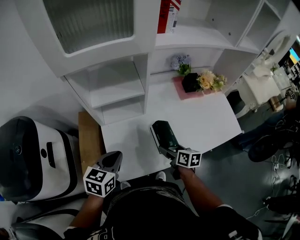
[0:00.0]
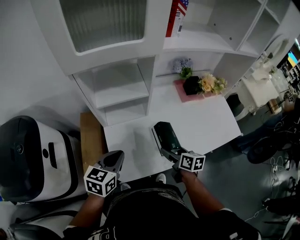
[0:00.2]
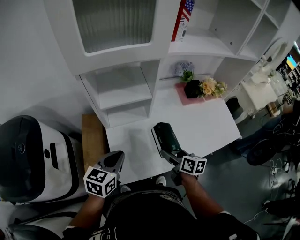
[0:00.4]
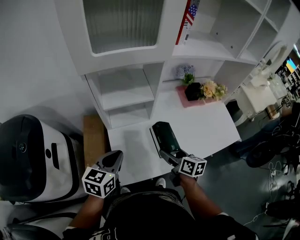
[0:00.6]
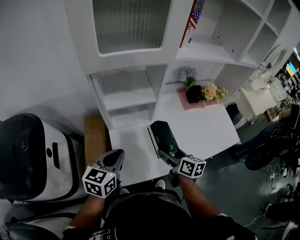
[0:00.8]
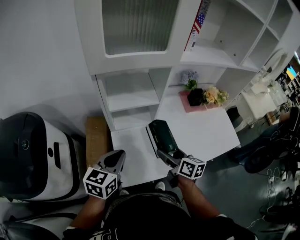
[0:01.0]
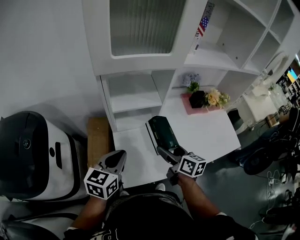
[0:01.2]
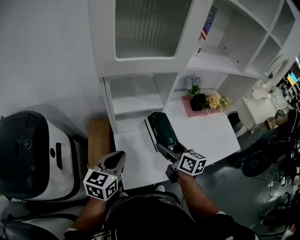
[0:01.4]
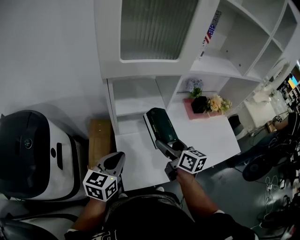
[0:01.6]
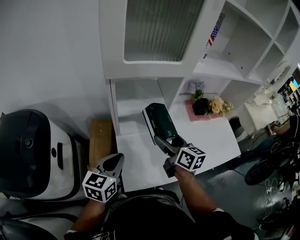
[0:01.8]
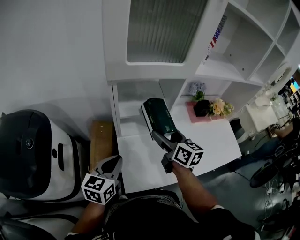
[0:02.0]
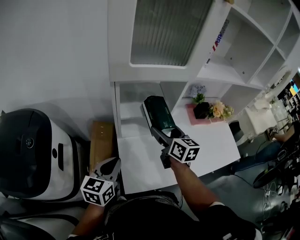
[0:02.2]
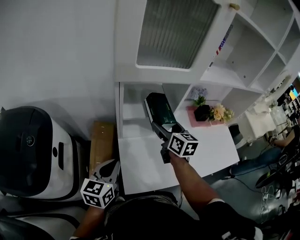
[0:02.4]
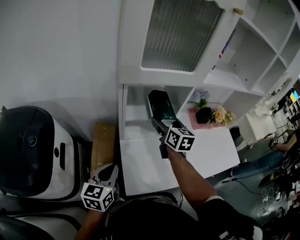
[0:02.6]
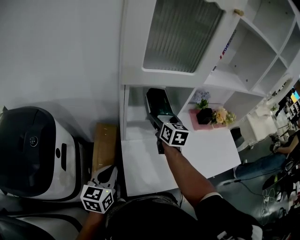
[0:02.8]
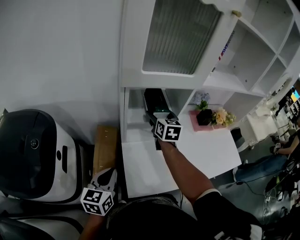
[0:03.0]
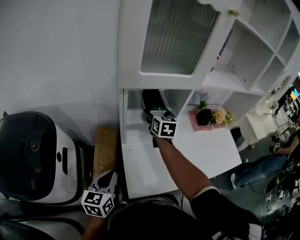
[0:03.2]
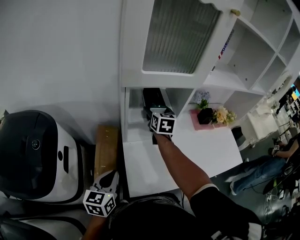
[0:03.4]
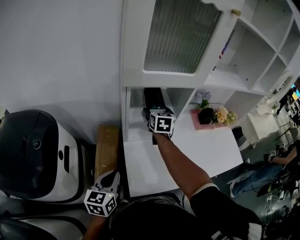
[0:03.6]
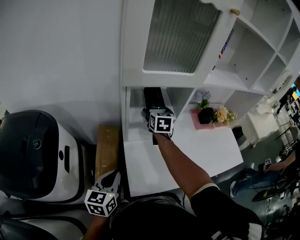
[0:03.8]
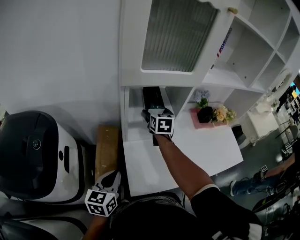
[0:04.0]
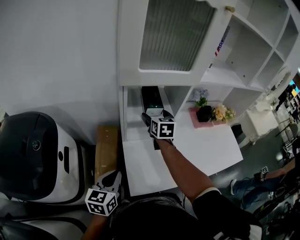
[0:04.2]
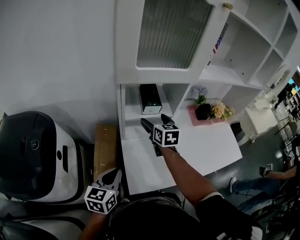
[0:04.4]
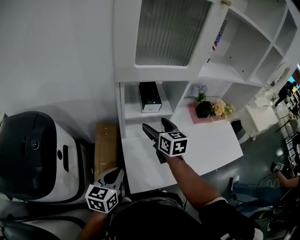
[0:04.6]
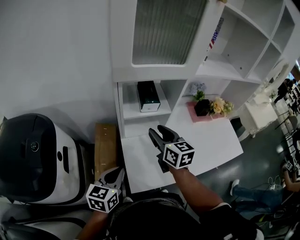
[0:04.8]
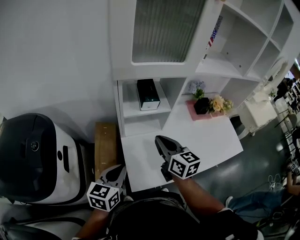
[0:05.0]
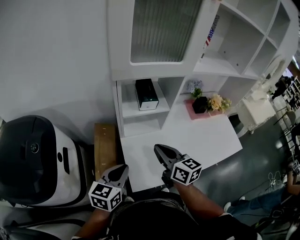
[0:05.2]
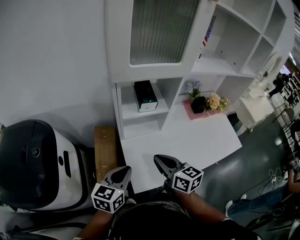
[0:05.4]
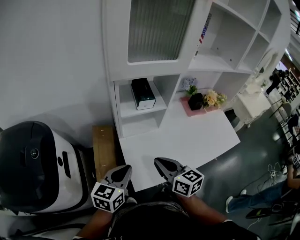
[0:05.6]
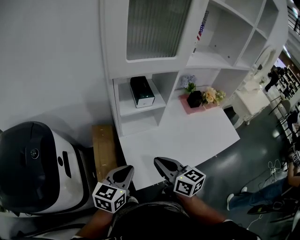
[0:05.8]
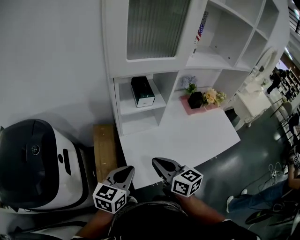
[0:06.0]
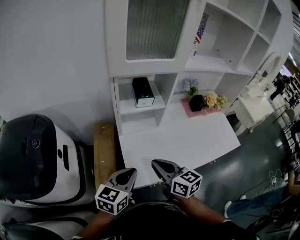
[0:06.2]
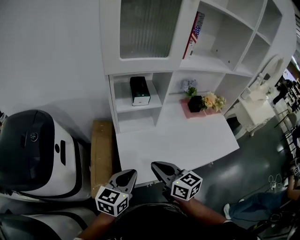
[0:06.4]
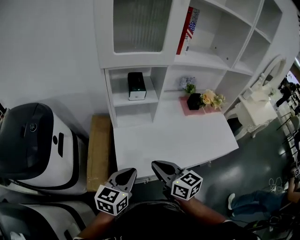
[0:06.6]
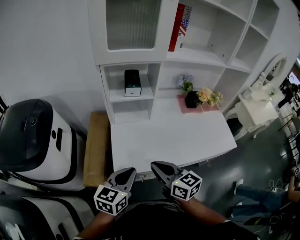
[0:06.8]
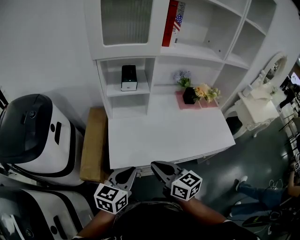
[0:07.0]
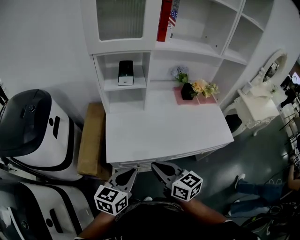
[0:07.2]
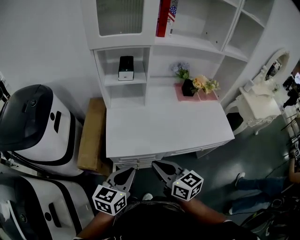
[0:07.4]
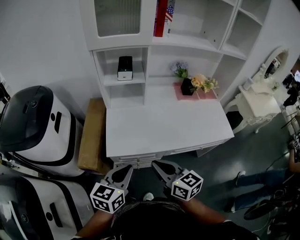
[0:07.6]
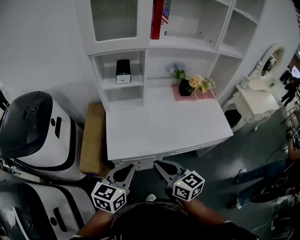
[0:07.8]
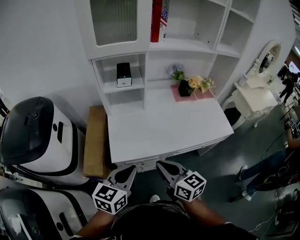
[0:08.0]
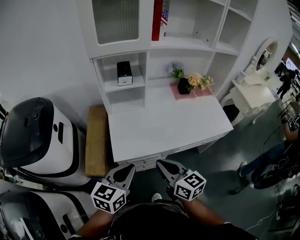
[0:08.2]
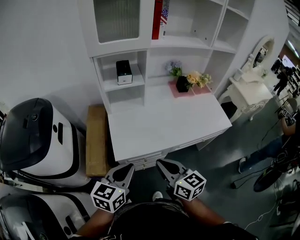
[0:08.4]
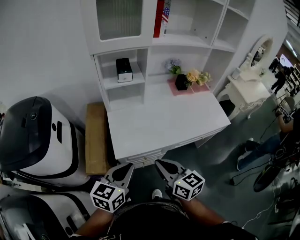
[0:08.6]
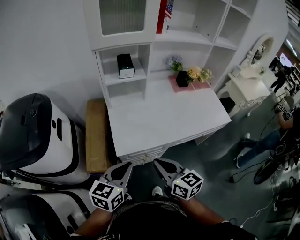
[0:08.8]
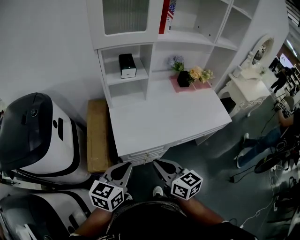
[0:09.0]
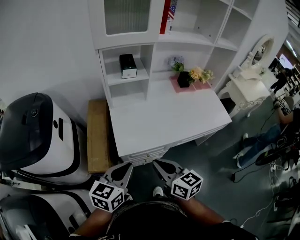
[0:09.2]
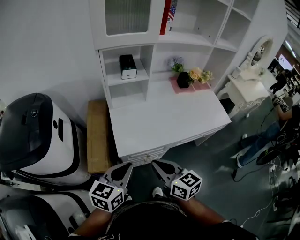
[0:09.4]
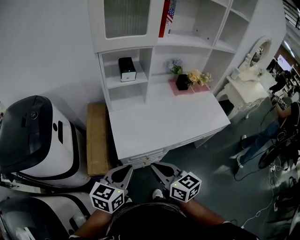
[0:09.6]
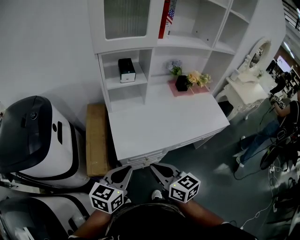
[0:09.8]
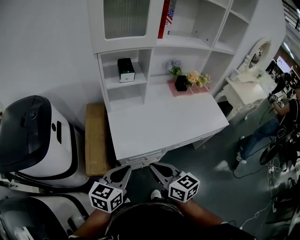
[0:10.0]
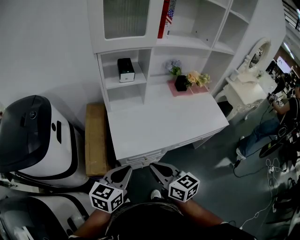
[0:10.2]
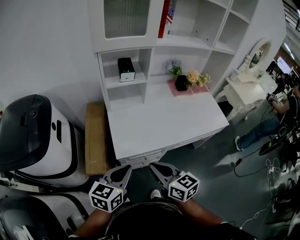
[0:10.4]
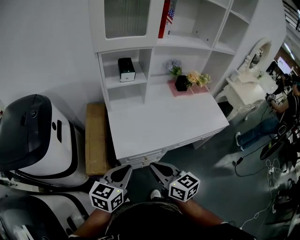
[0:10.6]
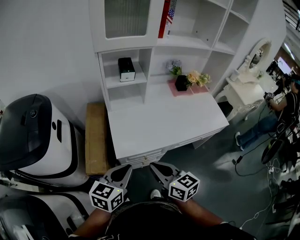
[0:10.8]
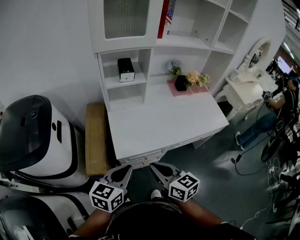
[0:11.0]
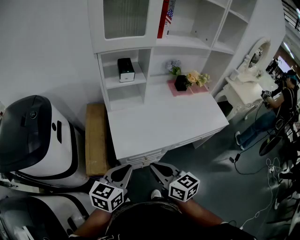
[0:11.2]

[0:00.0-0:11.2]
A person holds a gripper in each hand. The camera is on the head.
0:00.0 to 0:01.6: The left gripper moves to the left and upward, roughly 10 cm; the right gripper is displaced upward and to the left by approximately 25 cm, and swivels approximately 20 degrees.
0:01.6 to 0:03.2: The right gripper moves forward and to the left, roughly 20 cm, and turns by approximately 30 degrees. Meanwhile the left gripper heads to the left, covering about 10 cm.
0:03.2 to 0:04.8: The right gripper goes about 15 cm backward, and closes up.
0:04.8 to 0:06.4: The left gripper heads to the right and backward, covering approximately 10 cm. Meanwhile the right gripper heads backward, covering about 20 cm, and closes up.
0:06.4 to 0:08.0: The grippers both shift backward and to the right by some 20 cm.
0:08.0 to 0:09.6: Both grippers move to the left, roughly 10 cm.
0:09.6 to 0:11.2: Both grippers stay about where they are.

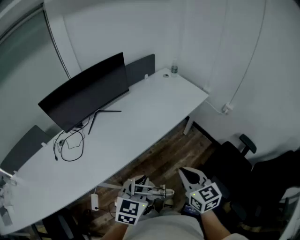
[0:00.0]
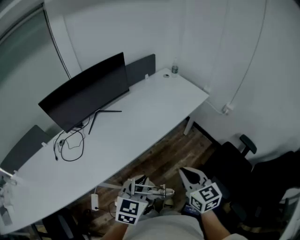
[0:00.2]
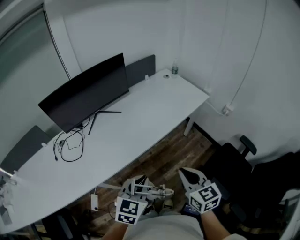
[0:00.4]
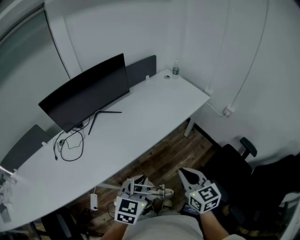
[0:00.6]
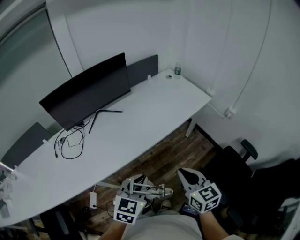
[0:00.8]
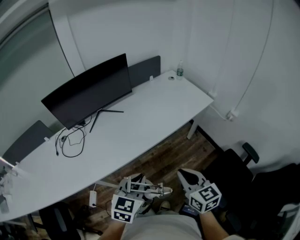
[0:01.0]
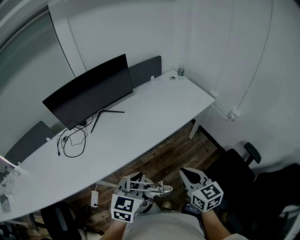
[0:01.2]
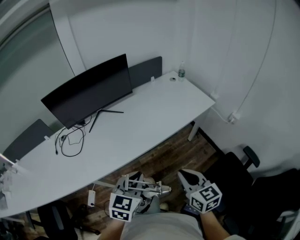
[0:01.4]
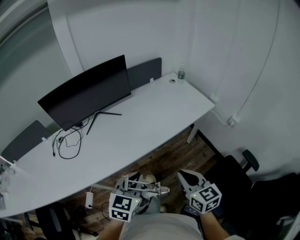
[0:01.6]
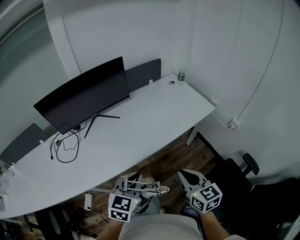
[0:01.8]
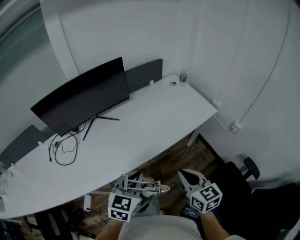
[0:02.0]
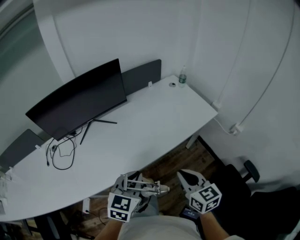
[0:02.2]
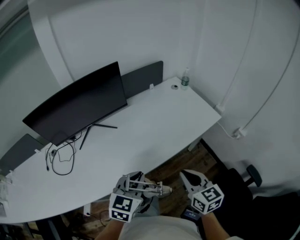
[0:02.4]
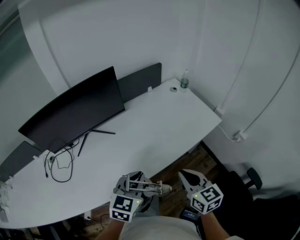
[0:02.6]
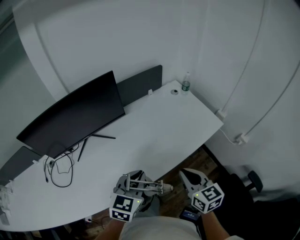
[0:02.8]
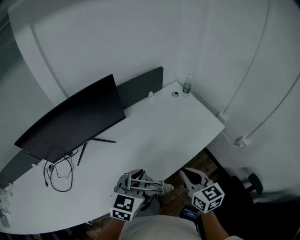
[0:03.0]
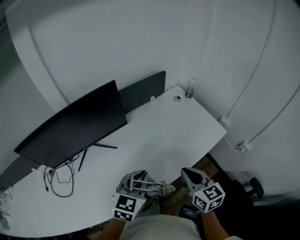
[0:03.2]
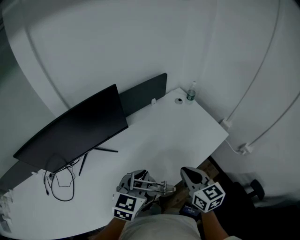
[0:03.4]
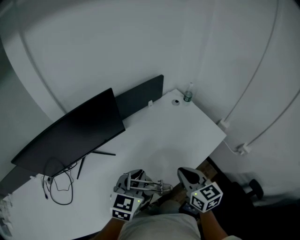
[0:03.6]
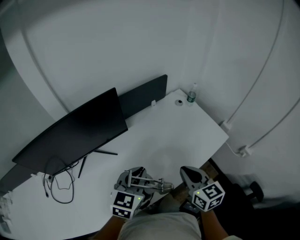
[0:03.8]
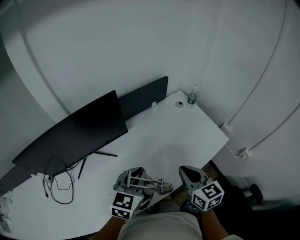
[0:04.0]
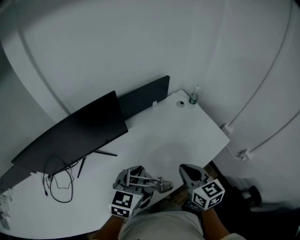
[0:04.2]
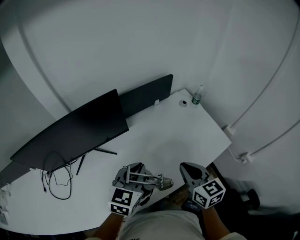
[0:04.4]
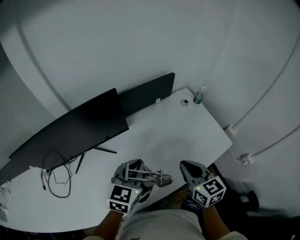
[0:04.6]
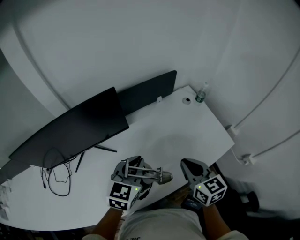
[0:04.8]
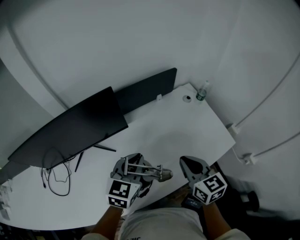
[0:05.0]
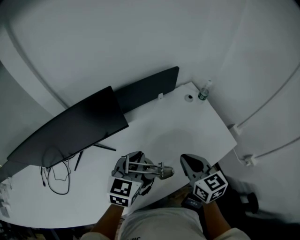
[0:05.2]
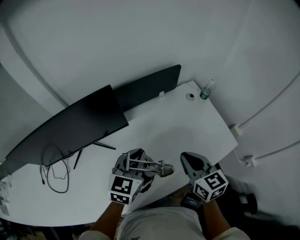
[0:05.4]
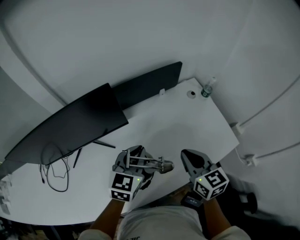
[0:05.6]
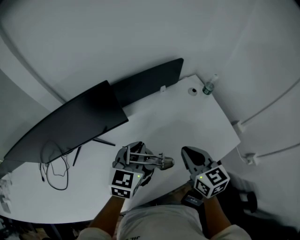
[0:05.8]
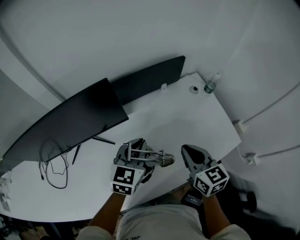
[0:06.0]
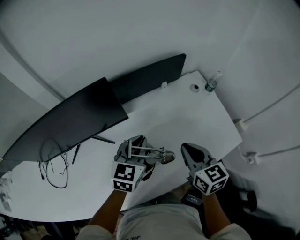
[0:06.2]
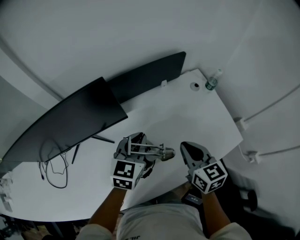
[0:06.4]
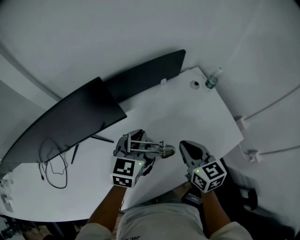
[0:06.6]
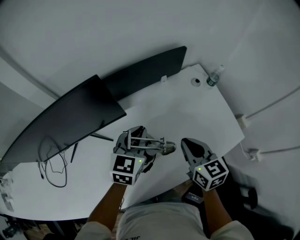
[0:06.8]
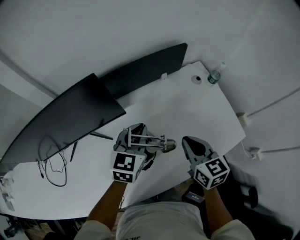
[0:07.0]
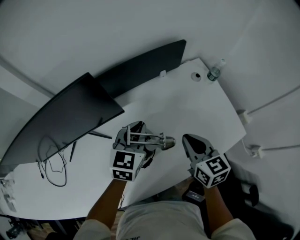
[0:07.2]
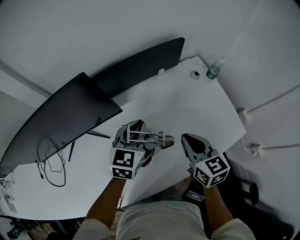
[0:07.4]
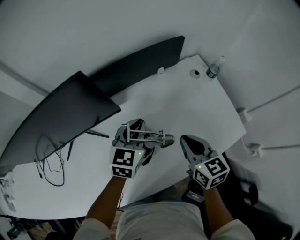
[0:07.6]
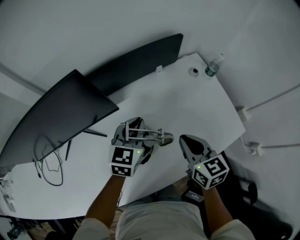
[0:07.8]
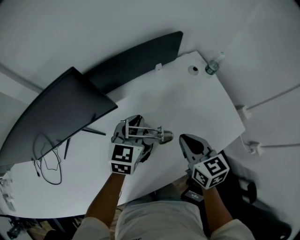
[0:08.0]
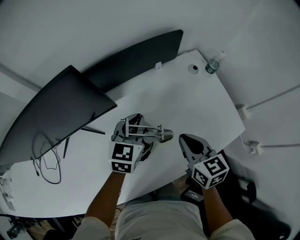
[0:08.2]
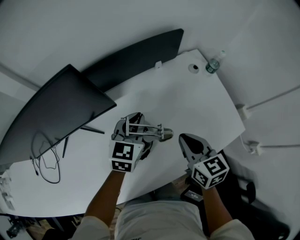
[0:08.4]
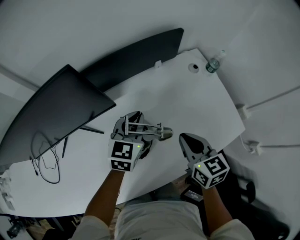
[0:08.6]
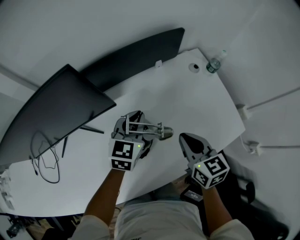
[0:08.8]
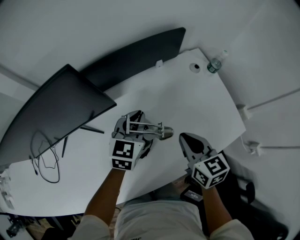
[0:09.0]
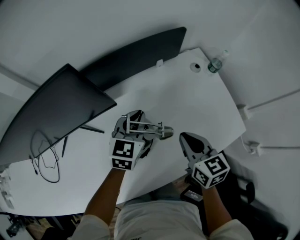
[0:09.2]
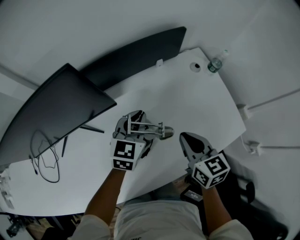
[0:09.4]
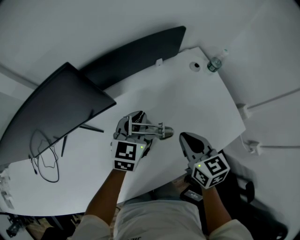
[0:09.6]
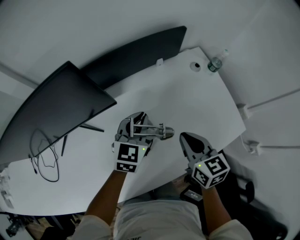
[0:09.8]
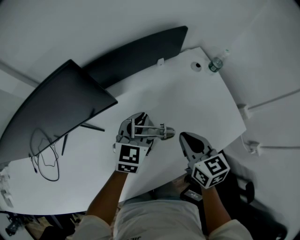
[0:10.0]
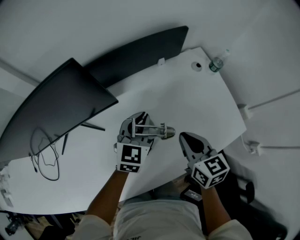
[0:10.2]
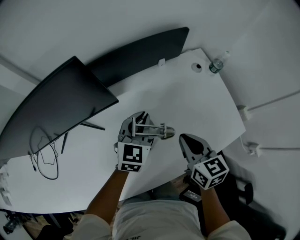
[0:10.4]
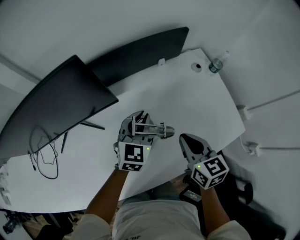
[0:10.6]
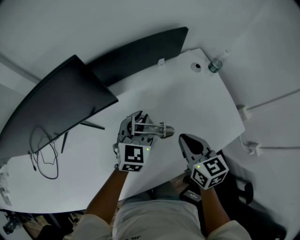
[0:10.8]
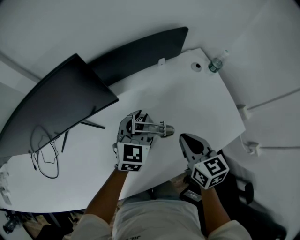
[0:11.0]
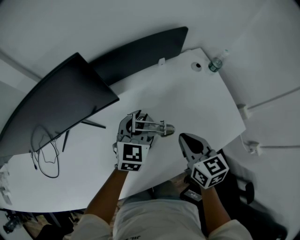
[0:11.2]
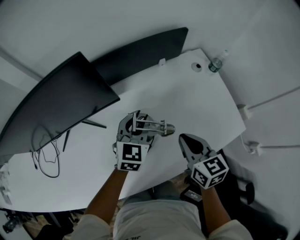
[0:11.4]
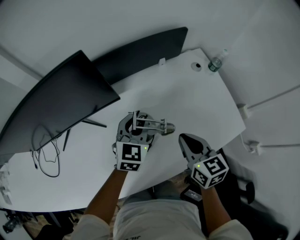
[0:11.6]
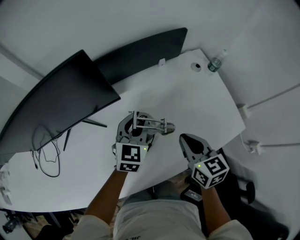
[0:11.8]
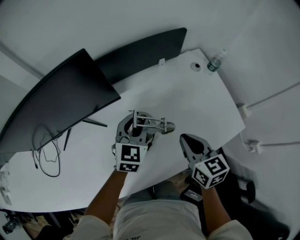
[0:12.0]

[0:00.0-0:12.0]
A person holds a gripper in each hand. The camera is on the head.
0:00.0 to 0:01.6: The right gripper is displaced forward and to the right by approximately 10 cm. The left gripper moves forward, roughly 5 cm.
0:01.6 to 0:03.0: Both grippers move forward, some 25 cm.
0:03.0 to 0:04.4: Both grippers move forward, some 15 cm.
0:04.4 to 0:06.0: Both grippers travel together forward, roughly 10 cm.
0:06.0 to 0:07.6: The left gripper shifts about 5 cm forward. Meanwhile the right gripper is displaced downward by about 5 cm.
0:07.6 to 0:10.4: The grippers stay close to where they were, moving slightly.
0:10.4 to 0:12.0: The left gripper opens up.

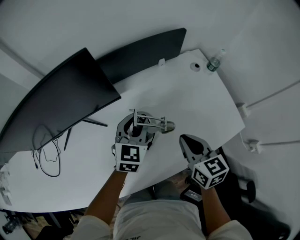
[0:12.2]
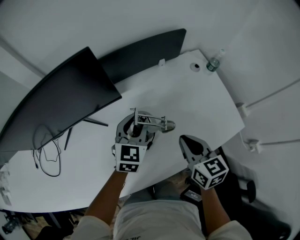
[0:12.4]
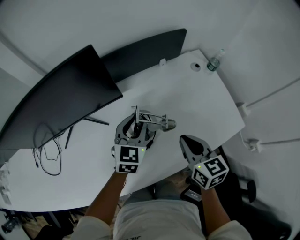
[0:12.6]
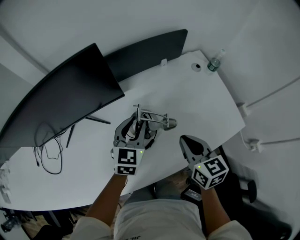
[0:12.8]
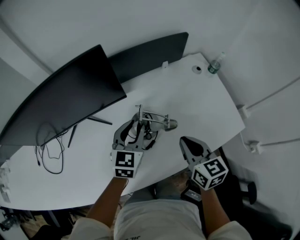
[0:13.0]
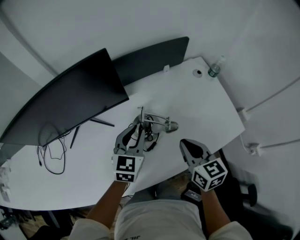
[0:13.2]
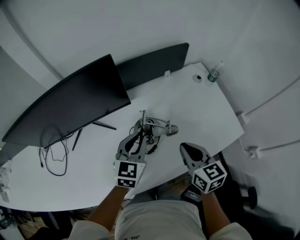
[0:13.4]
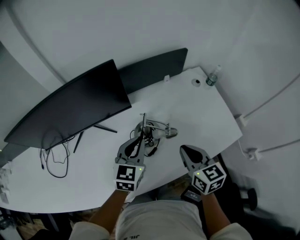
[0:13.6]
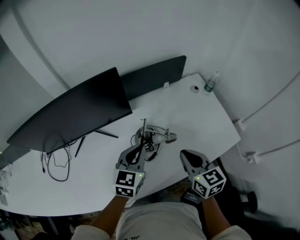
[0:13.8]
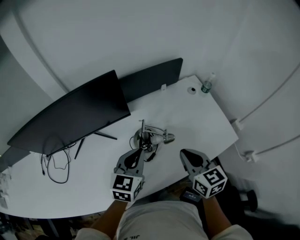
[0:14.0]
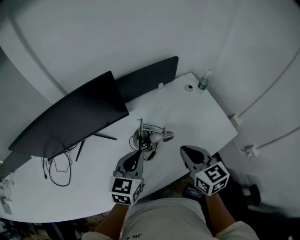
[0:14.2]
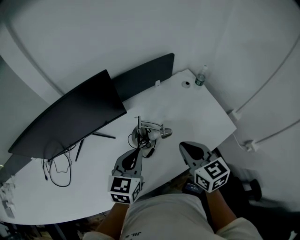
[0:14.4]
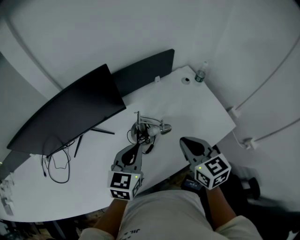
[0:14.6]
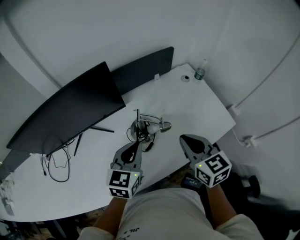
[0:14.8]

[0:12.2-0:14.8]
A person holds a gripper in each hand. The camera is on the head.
0:12.2 to 0:13.4: The left gripper travels backward by roughly 5 cm.
0:13.4 to 0:14.8: The left gripper travels upward and backward by approximately 10 cm, while the right gripper goes about 10 cm upward.
